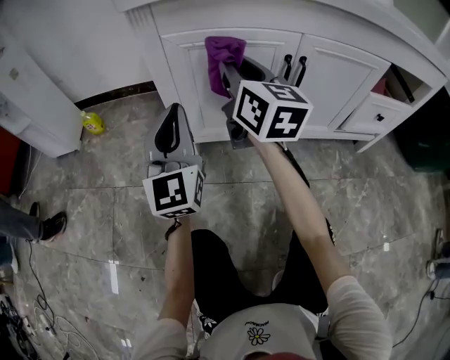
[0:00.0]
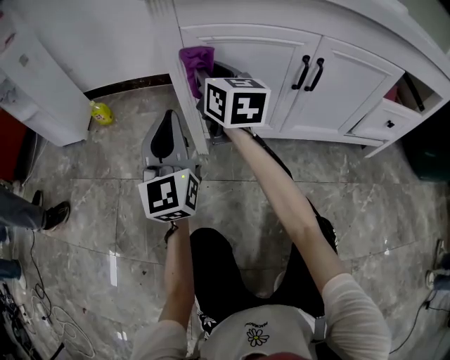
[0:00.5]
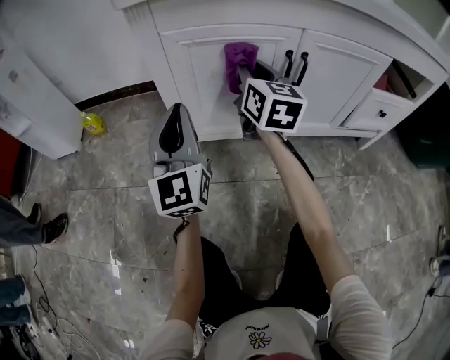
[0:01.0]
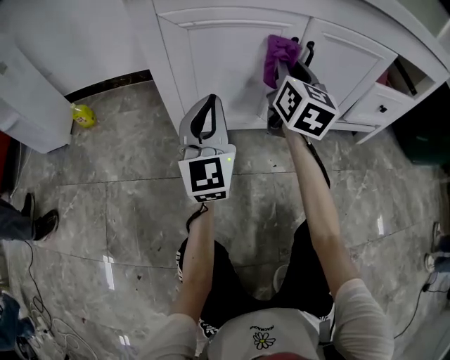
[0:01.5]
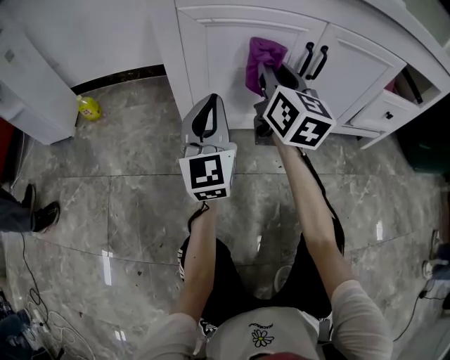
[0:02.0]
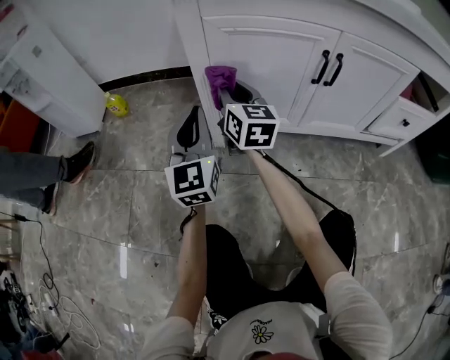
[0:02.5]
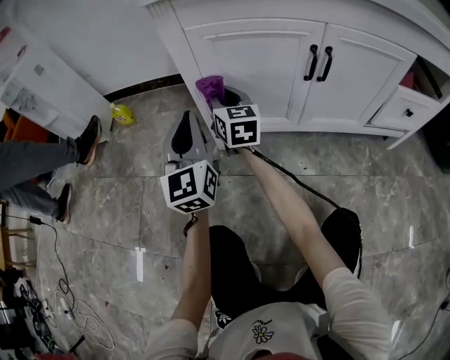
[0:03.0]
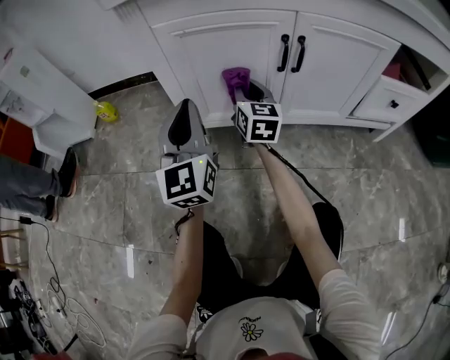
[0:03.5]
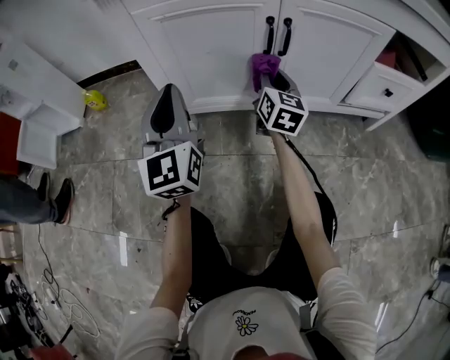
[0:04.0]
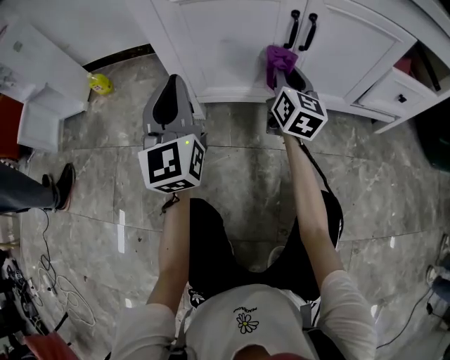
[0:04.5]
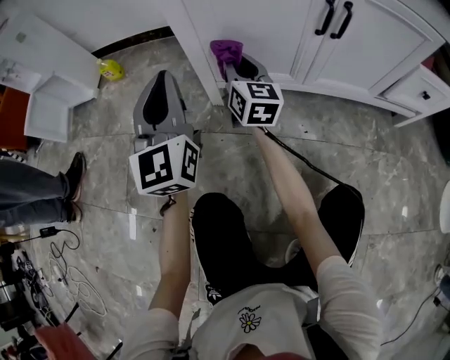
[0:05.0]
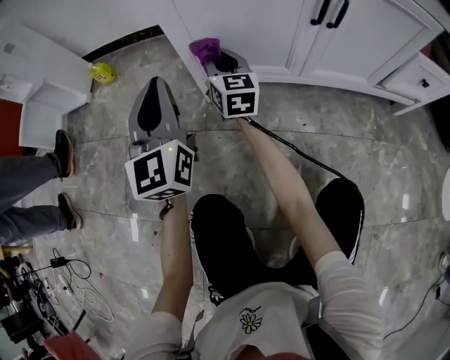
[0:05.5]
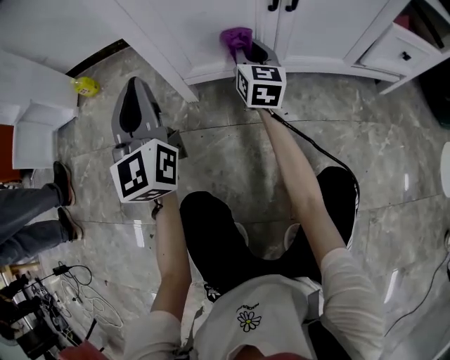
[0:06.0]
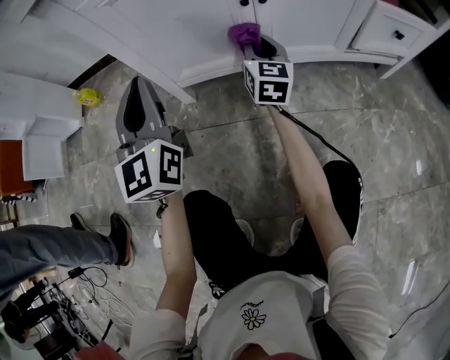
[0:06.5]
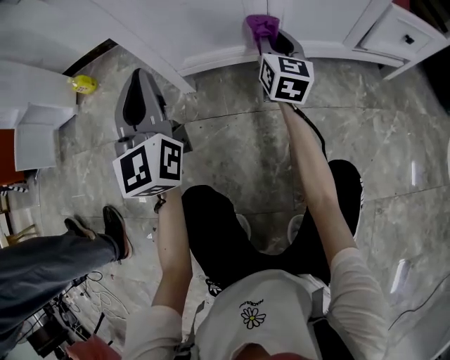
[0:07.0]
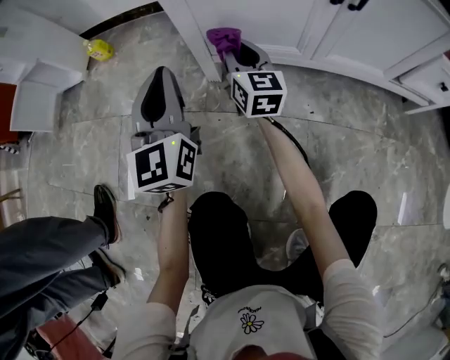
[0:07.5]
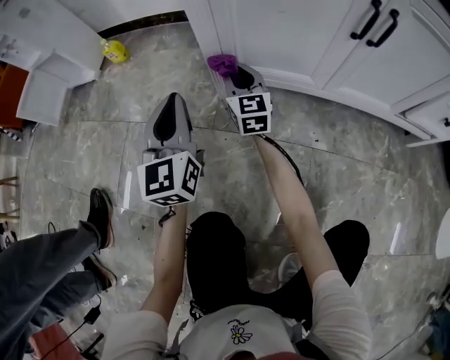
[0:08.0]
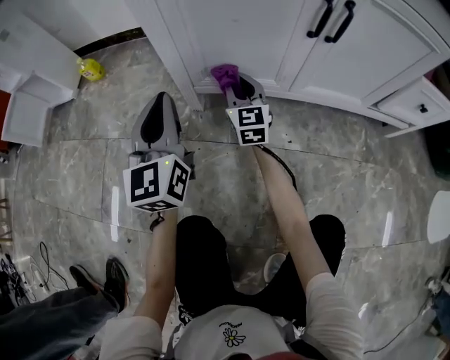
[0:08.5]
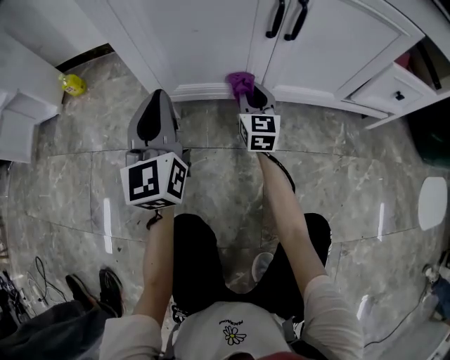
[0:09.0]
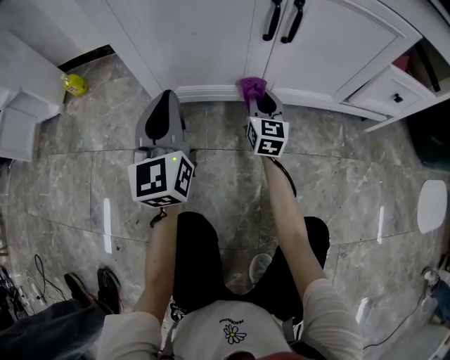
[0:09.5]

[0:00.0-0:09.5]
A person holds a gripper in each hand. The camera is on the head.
0:00.0 to 0:02.0: The left gripper moves downward, some 5 cm, and goes to the right and returns, some 5 cm each way, while the right gripper goes left and right, roughly 20 cm each way, reversing 2 times.
0:02.0 to 0:04.0: The right gripper is displaced downward and to the right by some 15 cm, while the left gripper goes to the left and returns, roughly 10 cm each way.
0:04.0 to 0:05.5: The left gripper shifts some 10 cm to the left, while the right gripper heads to the left, covering roughly 25 cm.
0:05.5 to 0:07.5: The left gripper moves downward, approximately 5 cm, and goes to the right and returns, approximately 10 cm each way. The right gripper reaches about 25 cm to the right, then returns.
0:07.5 to 0:09.5: The left gripper shifts some 10 cm to the right. The right gripper is displaced to the right by approximately 20 cm.

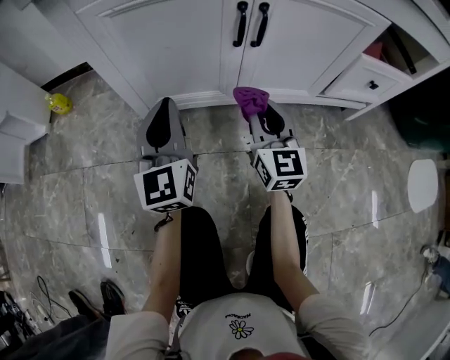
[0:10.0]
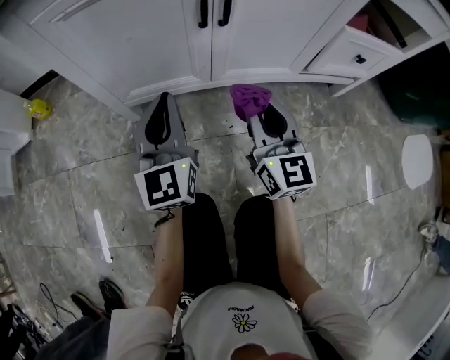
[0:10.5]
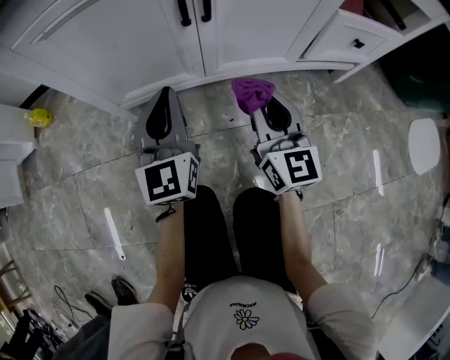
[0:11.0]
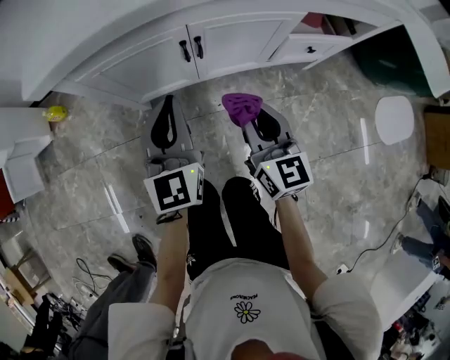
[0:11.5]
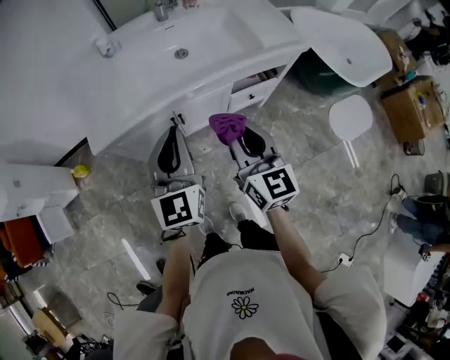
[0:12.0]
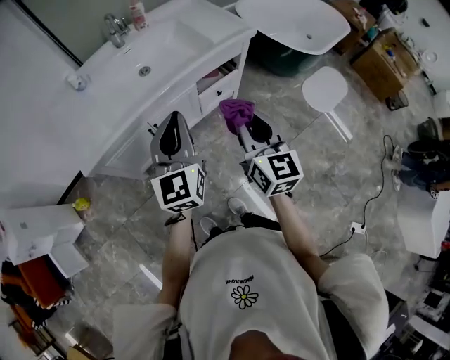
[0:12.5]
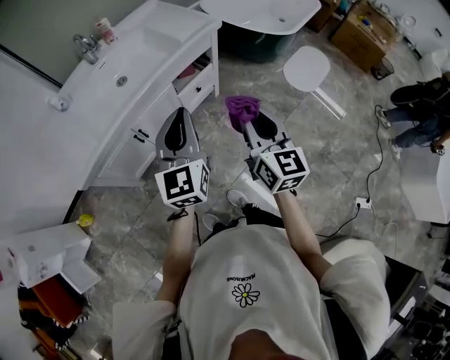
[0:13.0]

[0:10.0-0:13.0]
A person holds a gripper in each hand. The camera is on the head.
0:10.0 to 0:11.5: The right gripper is displaced upward and backward by some 25 cm. Meanwhile the left gripper travels upward and to the right by some 25 cm.
0:11.5 to 0:13.0: Both grippers move upward, roughly 40 cm. The right gripper swivels some 40 degrees; the left gripper turns by some 40 degrees.

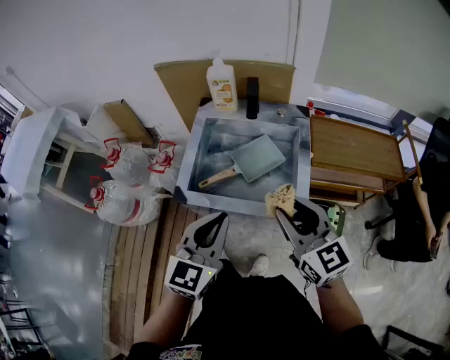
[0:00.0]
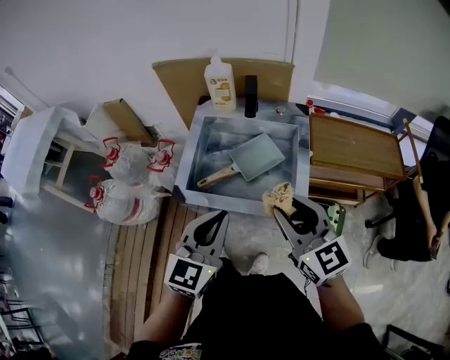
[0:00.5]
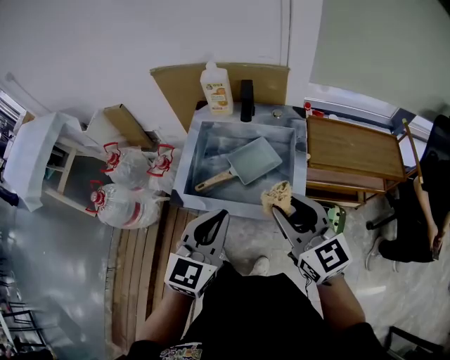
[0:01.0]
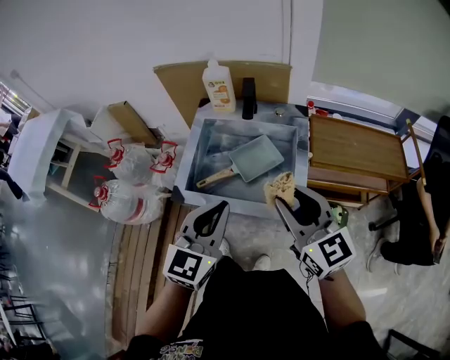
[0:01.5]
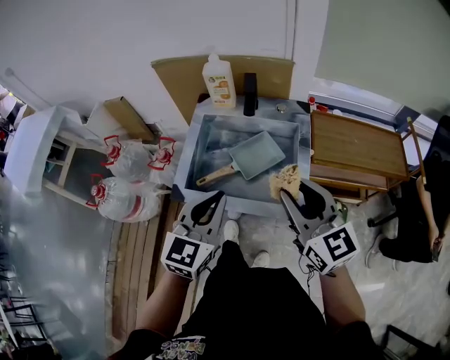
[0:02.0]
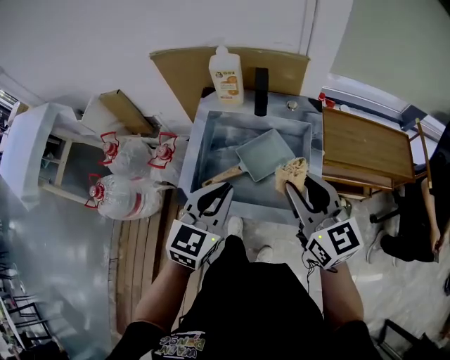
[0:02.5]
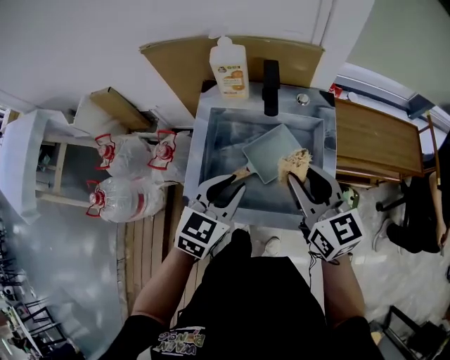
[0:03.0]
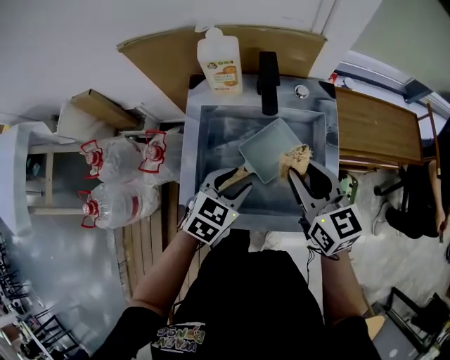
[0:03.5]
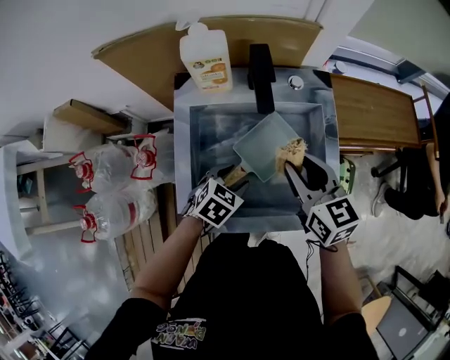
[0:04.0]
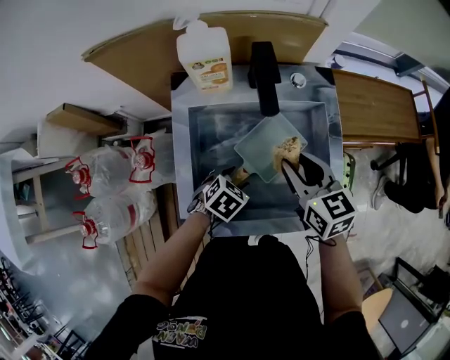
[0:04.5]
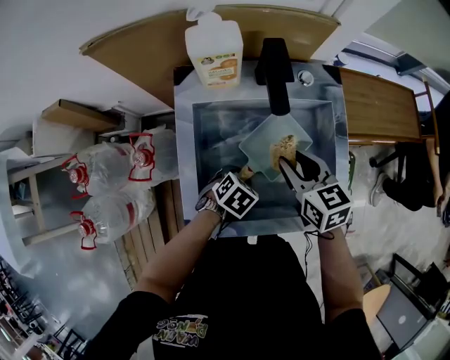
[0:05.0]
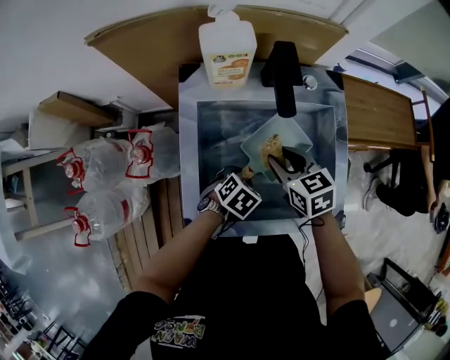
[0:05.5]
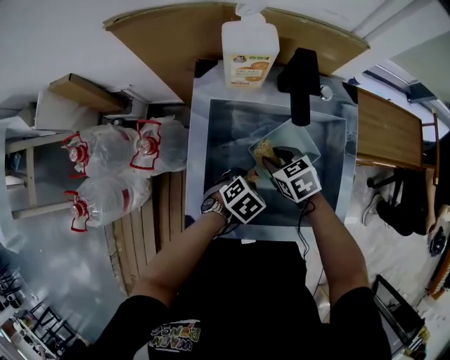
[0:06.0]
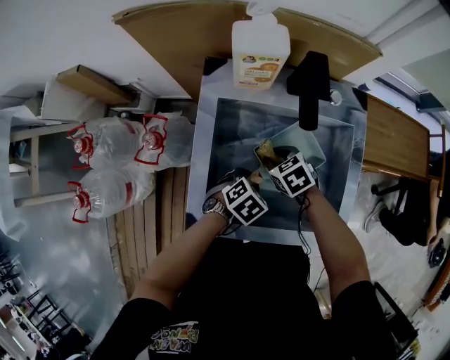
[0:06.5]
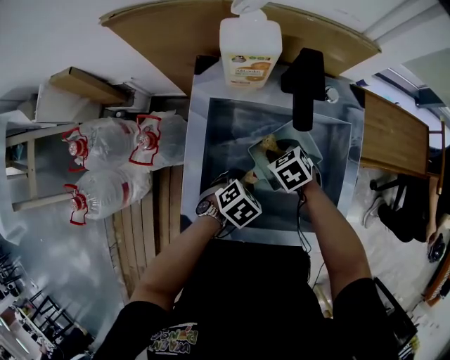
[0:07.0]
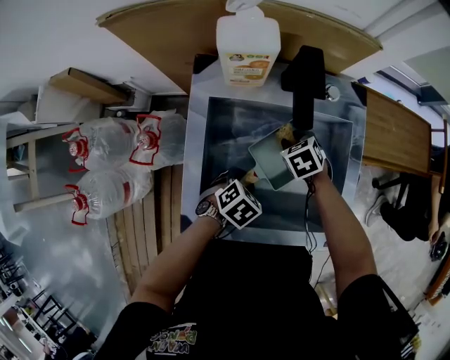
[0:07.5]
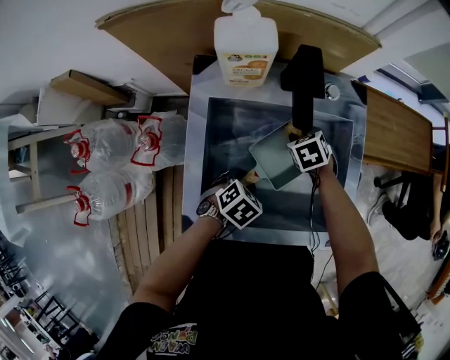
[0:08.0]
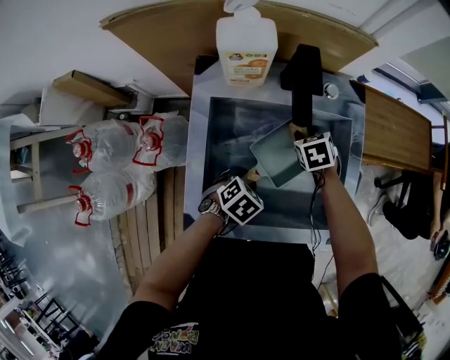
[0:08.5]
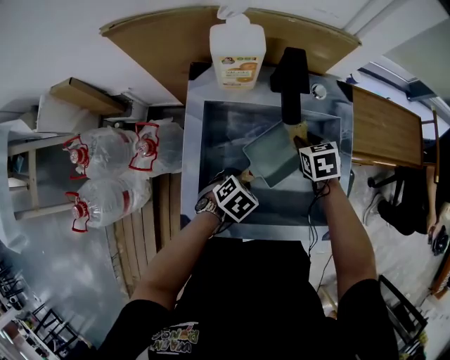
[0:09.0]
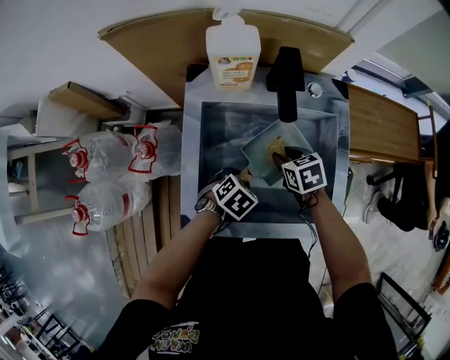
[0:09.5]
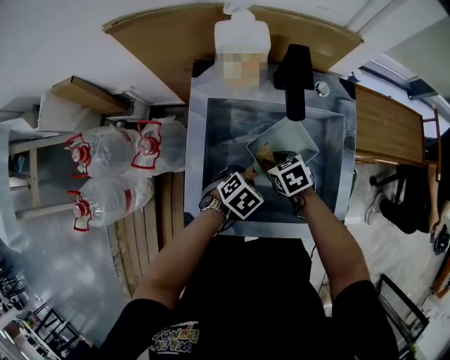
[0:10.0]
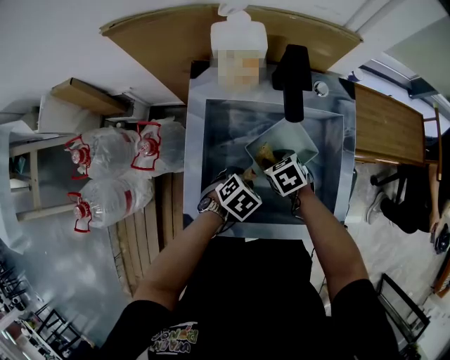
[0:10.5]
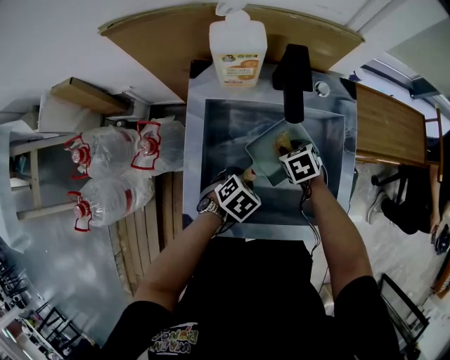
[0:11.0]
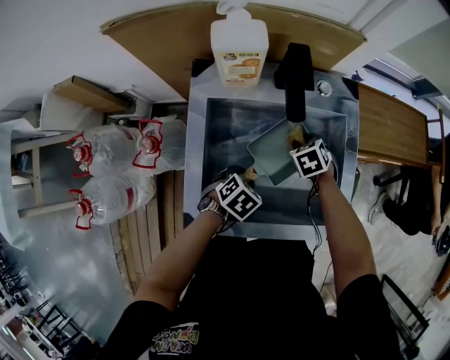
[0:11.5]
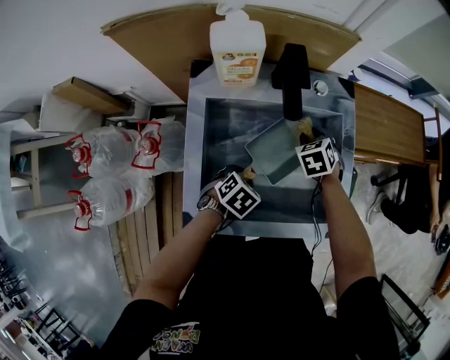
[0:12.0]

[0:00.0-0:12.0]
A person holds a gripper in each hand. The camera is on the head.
0:00.0 to 0:02.0: The right gripper ends up roughly 5 cm from where it was, while the left gripper shifts approximately 5 cm forward.
0:02.0 to 0:04.0: The left gripper heads downward and forward, covering about 30 cm, tips its fingers downward by about 40 degrees, and opens up. Meanwhile the right gripper goes some 25 cm forward, downward and to the left, and turns by about 30 degrees.
0:04.0 to 0:06.0: The right gripper shifts about 20 cm downward and to the left, and points its fingers roughly 30 degrees further downward; the left gripper shifts approximately 5 cm downward.
0:06.0 to 0:08.0: The right gripper moves about 15 cm.
0:08.0 to 0:10.0: The right gripper moves backward, some 10 cm.
0:10.0 to 0:12.0: The right gripper moves about 15 cm, and changes its angle by roughly 30 degrees.

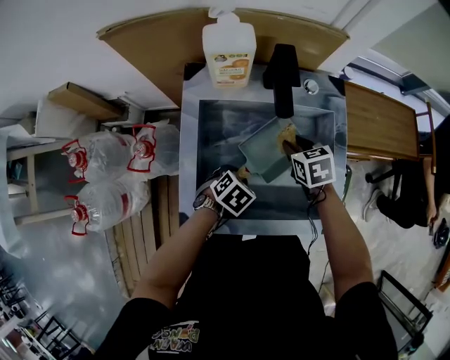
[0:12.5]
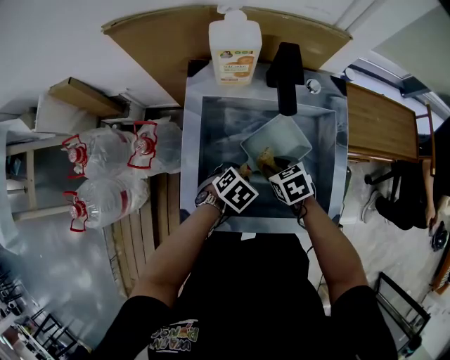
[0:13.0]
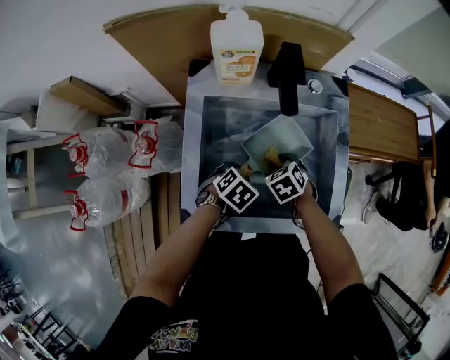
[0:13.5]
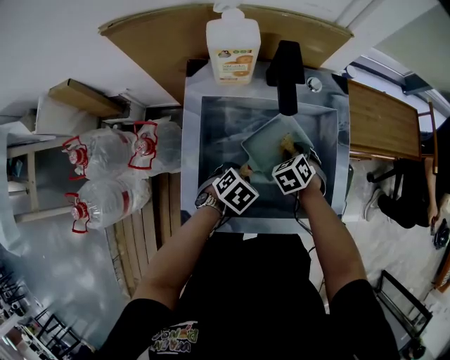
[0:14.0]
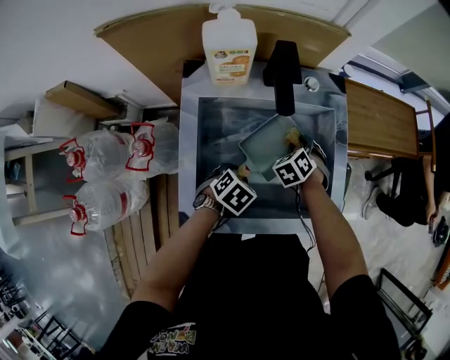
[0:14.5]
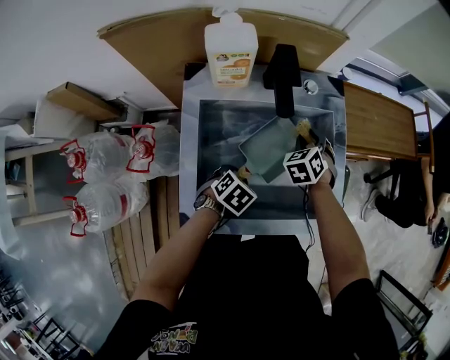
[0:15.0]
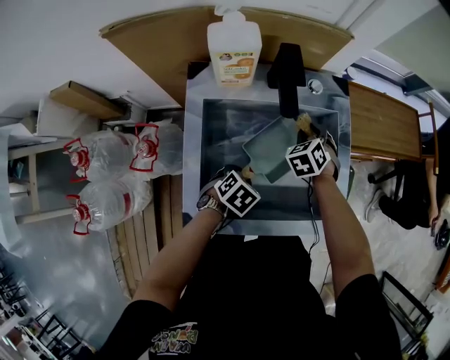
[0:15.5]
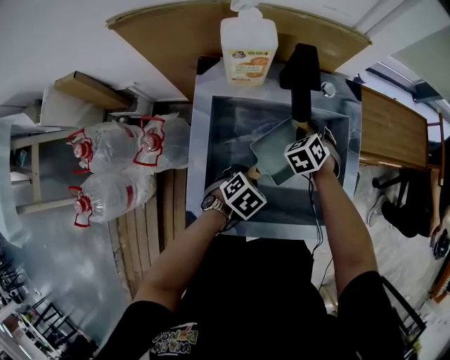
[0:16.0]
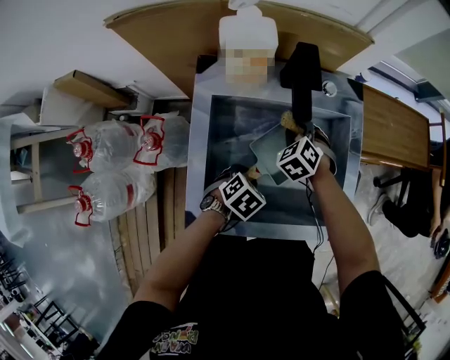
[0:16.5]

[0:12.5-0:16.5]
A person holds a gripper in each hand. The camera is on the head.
0:12.5 to 0:14.5: The right gripper travels downward by roughly 5 cm, and changes its angle by roughly 40 degrees.
0:14.5 to 0:16.5: The right gripper travels to the left by approximately 10 cm.
